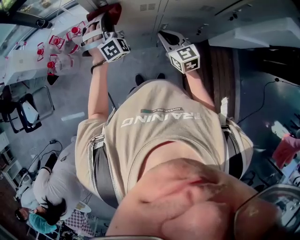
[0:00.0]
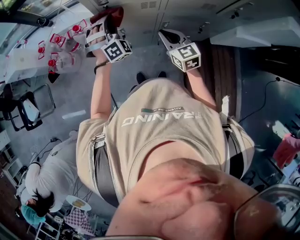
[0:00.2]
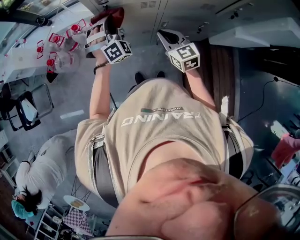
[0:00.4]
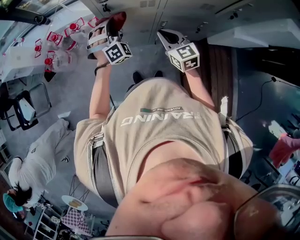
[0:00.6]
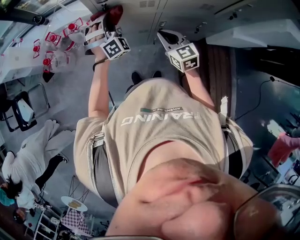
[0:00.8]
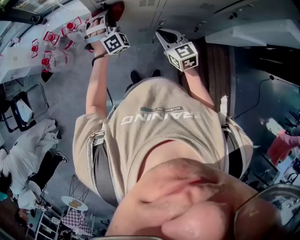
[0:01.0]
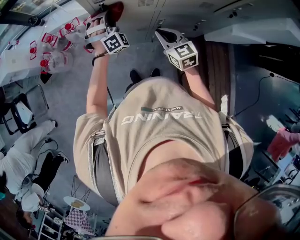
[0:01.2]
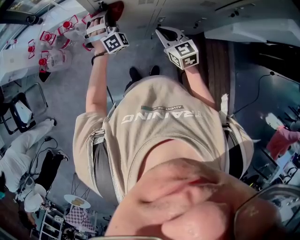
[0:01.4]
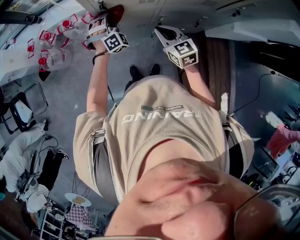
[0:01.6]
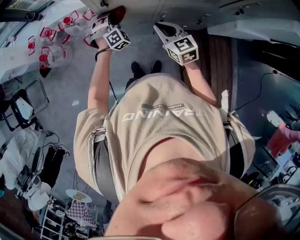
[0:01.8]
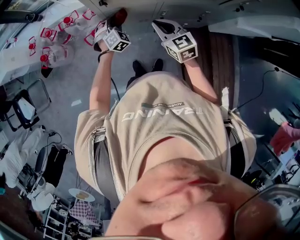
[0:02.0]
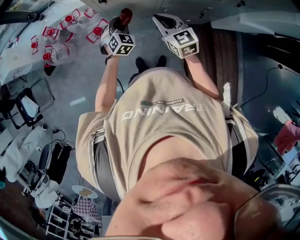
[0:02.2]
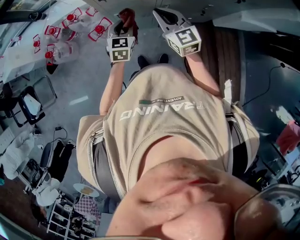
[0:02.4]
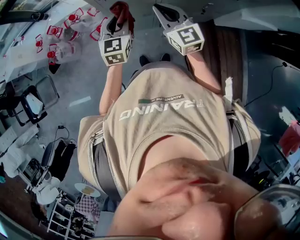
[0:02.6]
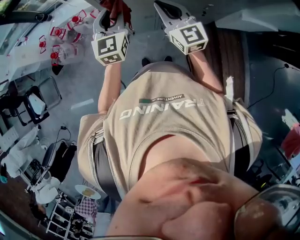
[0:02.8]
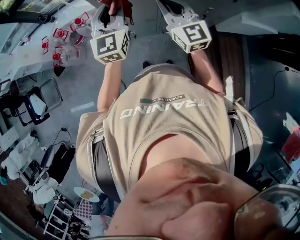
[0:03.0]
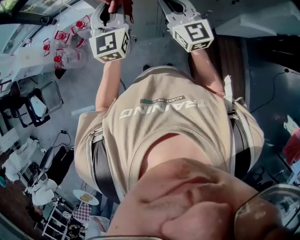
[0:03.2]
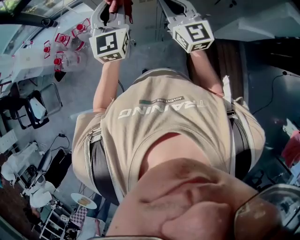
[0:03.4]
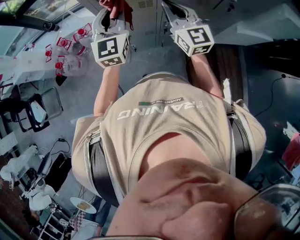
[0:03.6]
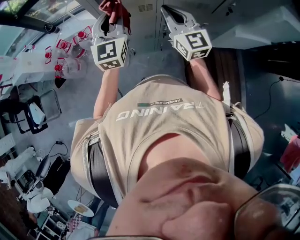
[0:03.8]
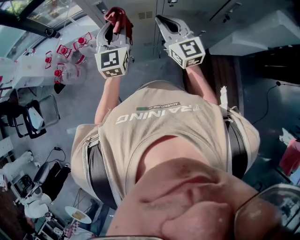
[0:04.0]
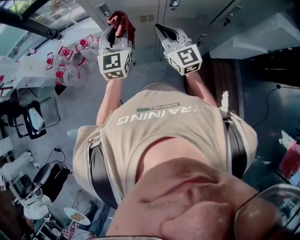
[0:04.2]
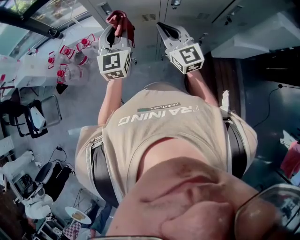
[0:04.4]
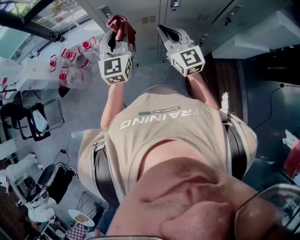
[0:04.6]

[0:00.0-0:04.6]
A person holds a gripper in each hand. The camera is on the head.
0:00.0 to 0:01.6: The left gripper moves downward, approximately 15 cm.
0:01.6 to 0:03.0: The right gripper goes about 15 cm upward, and turns by some 30 degrees, while the left gripper travels upward and backward by about 25 cm, and twists some 60 degrees counterclockwise, seen from behind.
0:03.0 to 0:04.6: The grippers move only a little.

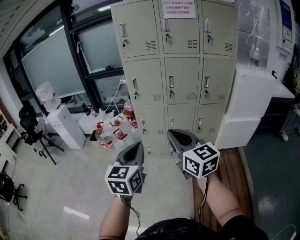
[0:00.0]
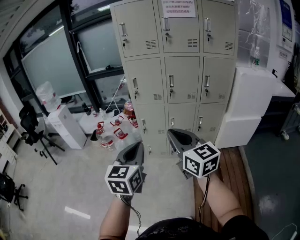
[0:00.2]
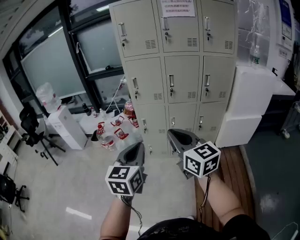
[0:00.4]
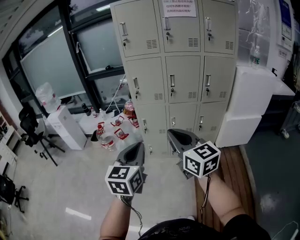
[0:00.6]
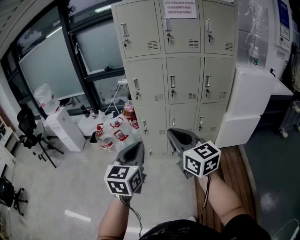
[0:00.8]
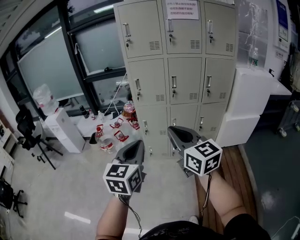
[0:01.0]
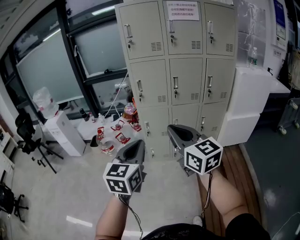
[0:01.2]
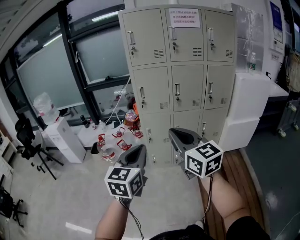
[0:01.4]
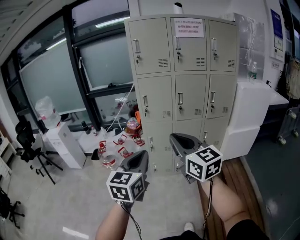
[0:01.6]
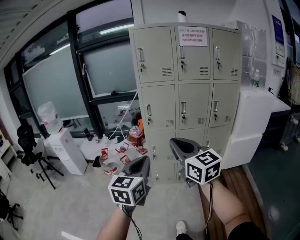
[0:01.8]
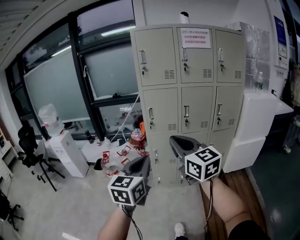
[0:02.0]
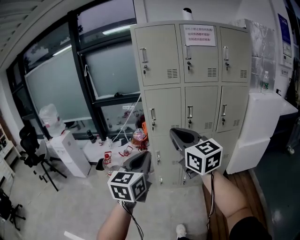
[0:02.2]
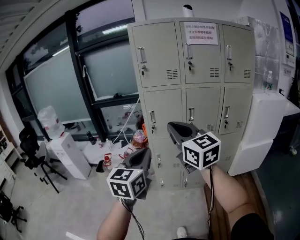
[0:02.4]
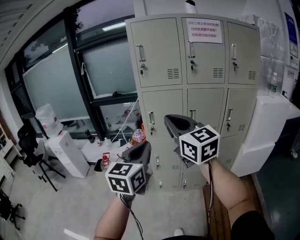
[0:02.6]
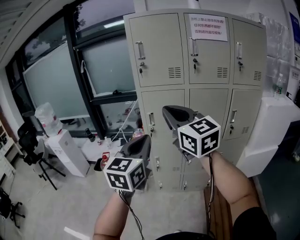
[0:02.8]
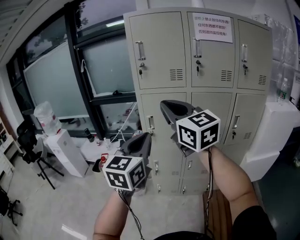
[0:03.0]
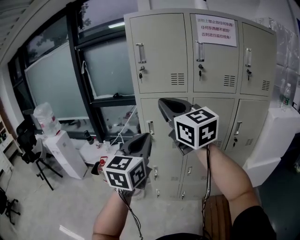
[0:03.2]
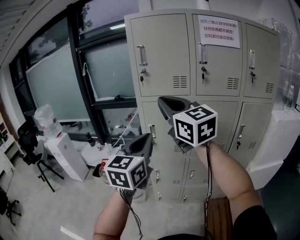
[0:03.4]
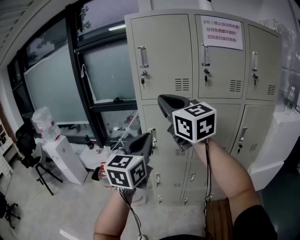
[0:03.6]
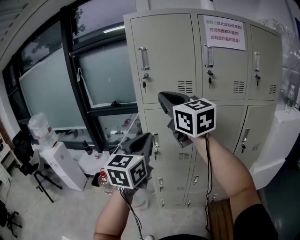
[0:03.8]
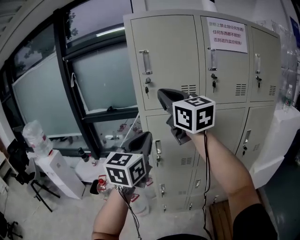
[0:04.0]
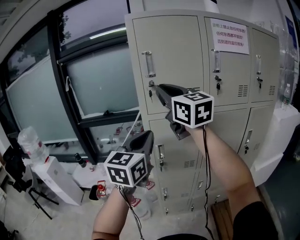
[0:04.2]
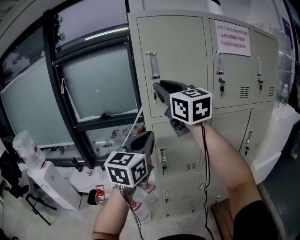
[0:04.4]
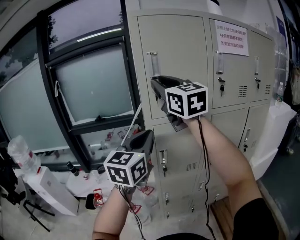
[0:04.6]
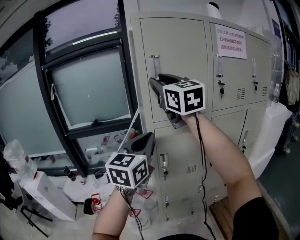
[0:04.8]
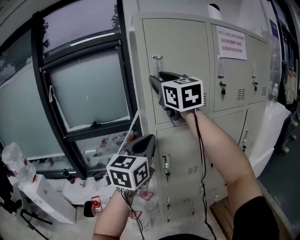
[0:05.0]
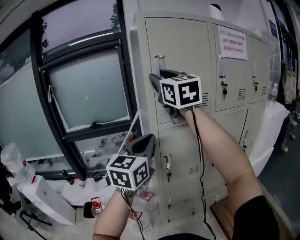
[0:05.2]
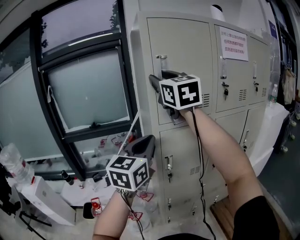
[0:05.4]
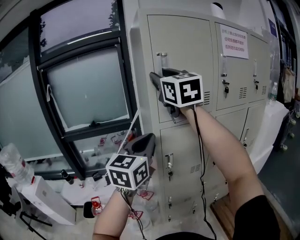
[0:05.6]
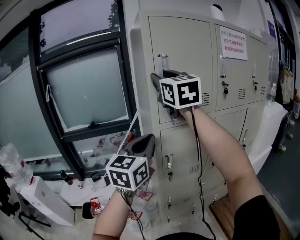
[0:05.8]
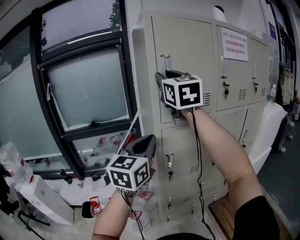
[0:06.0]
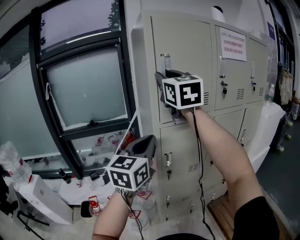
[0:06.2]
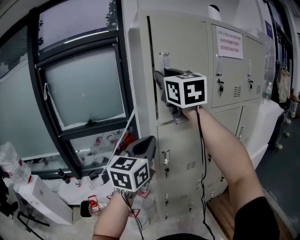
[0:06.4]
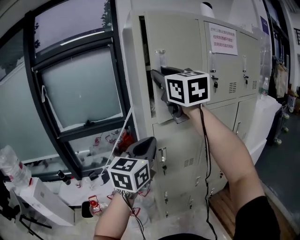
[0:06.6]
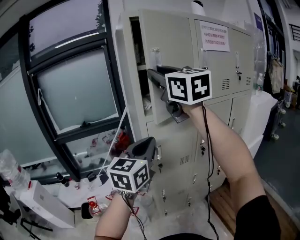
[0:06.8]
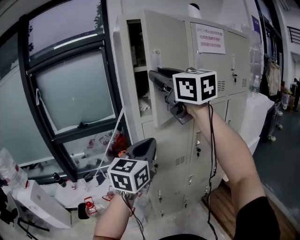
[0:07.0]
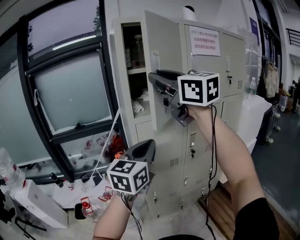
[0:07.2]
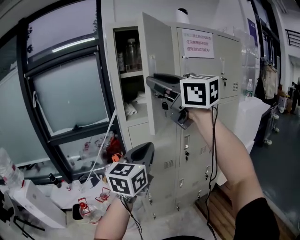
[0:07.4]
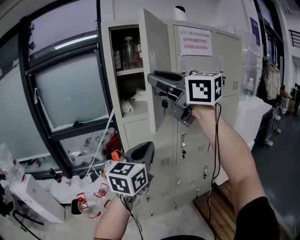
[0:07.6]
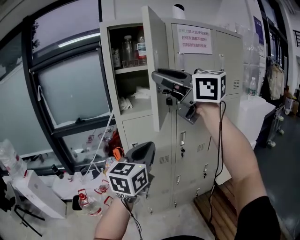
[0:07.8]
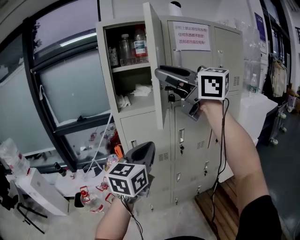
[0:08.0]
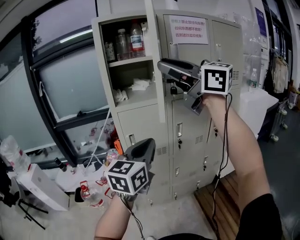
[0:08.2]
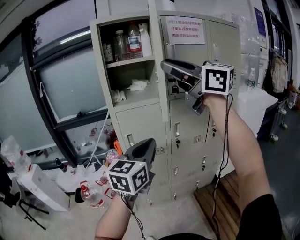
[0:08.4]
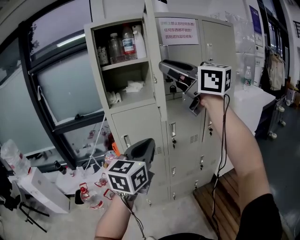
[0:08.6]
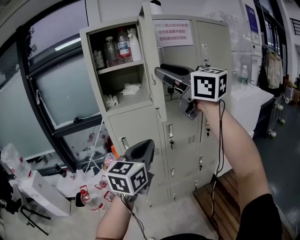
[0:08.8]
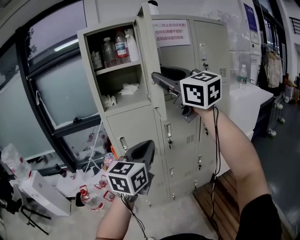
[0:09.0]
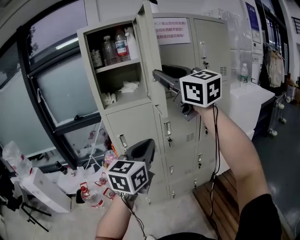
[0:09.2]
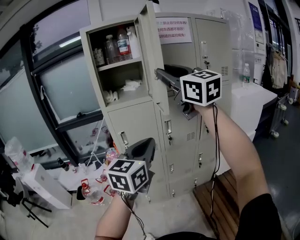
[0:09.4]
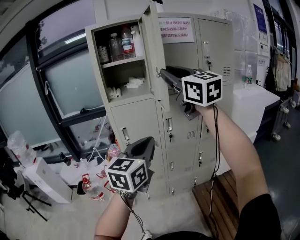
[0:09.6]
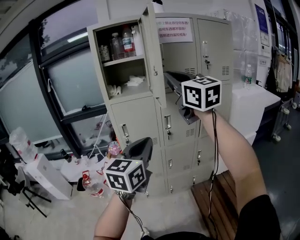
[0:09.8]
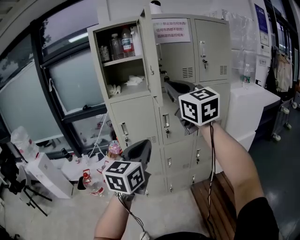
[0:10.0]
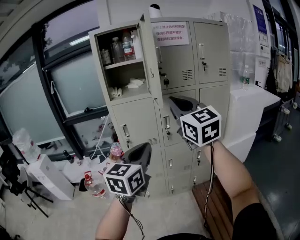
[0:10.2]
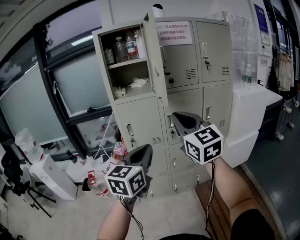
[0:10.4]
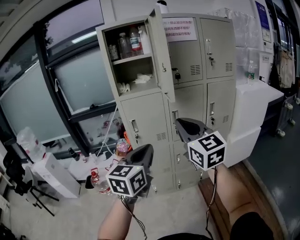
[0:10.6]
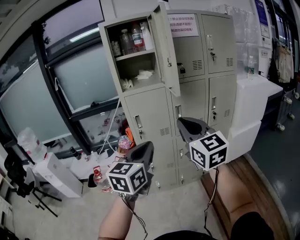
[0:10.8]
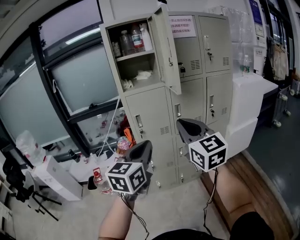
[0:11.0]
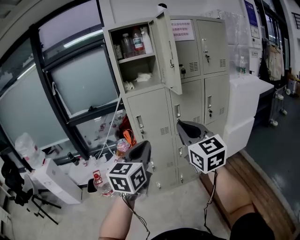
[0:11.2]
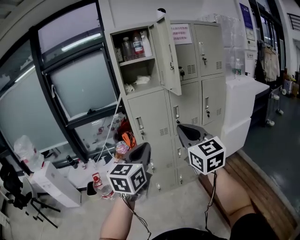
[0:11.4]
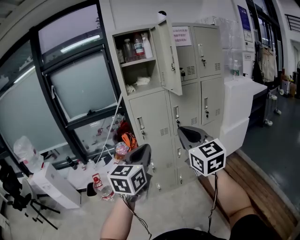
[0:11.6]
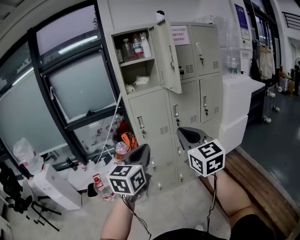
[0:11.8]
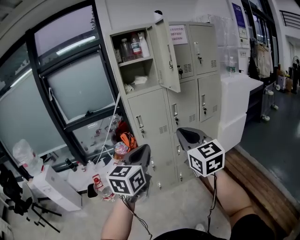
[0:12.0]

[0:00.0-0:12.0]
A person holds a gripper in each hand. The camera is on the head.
0:00.0 to 0:01.6: The two grippers go about 10 cm to the left.
0:01.6 to 0:03.0: The left gripper moves forward, some 30 cm, while the right gripper goes approximately 35 cm forward and upward.
0:03.0 to 0:04.4: The left gripper goes approximately 25 cm forward, while the right gripper moves forward and upward, about 30 cm.
0:04.4 to 0:06.0: The right gripper goes roughly 5 cm forward, and turns by about 20 degrees. Meanwhile the left gripper travels to the left by roughly 5 cm.
0:06.0 to 0:07.6: The left gripper is displaced to the right and backward by roughly 15 cm. Meanwhile the right gripper goes about 20 cm backward and to the right, and swivels roughly 30 degrees.
0:07.6 to 0:09.0: The grippers both shift to the right and backward by about 15 cm.
0:09.0 to 0:10.4: The right gripper goes roughly 20 cm downward and backward, and closes its fingers; the left gripper travels backward by about 10 cm.
0:10.4 to 0:12.0: The left gripper heads to the left and backward, covering about 20 cm; the right gripper is displaced backward and to the left by approximately 20 cm.

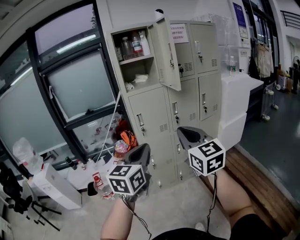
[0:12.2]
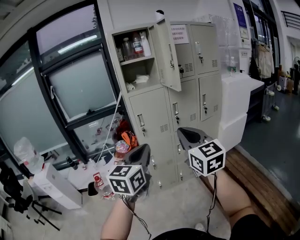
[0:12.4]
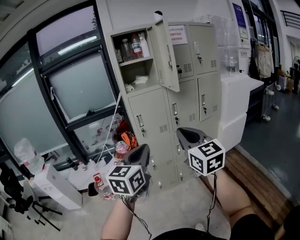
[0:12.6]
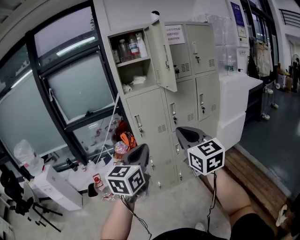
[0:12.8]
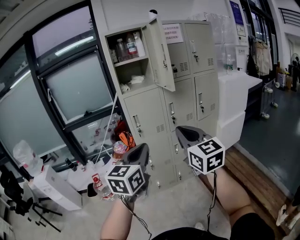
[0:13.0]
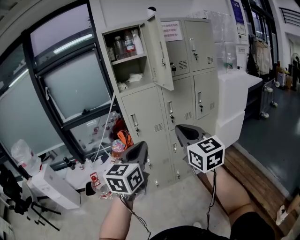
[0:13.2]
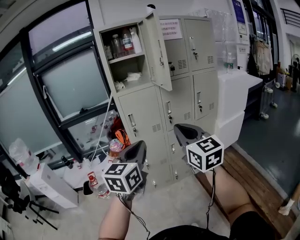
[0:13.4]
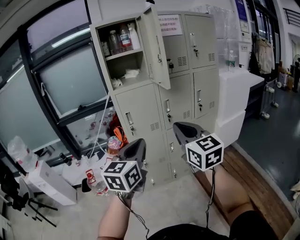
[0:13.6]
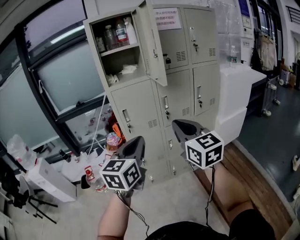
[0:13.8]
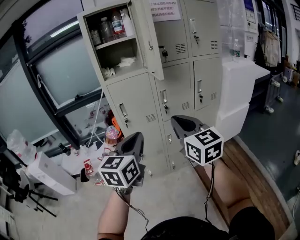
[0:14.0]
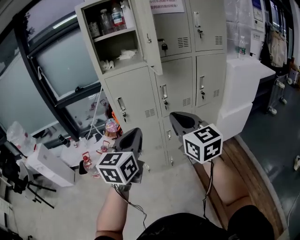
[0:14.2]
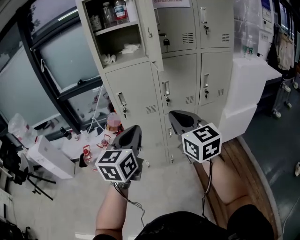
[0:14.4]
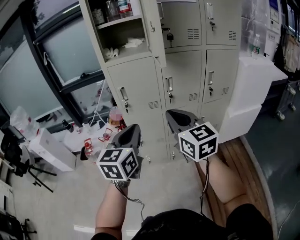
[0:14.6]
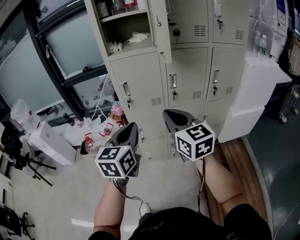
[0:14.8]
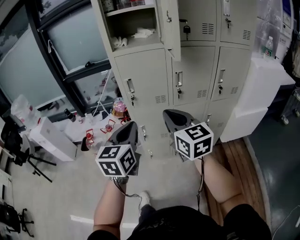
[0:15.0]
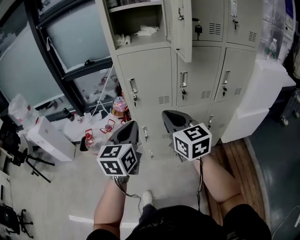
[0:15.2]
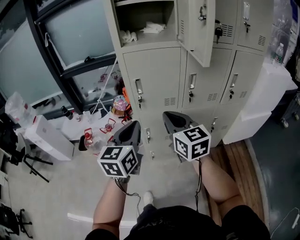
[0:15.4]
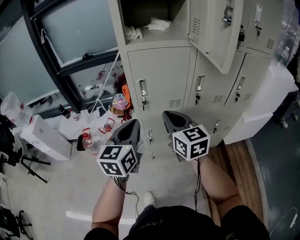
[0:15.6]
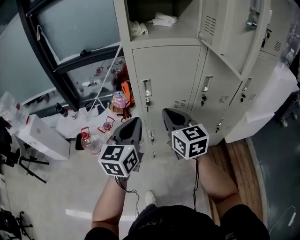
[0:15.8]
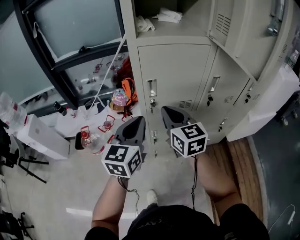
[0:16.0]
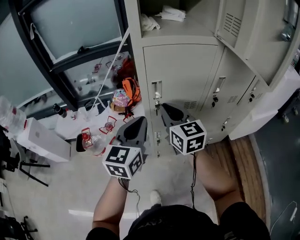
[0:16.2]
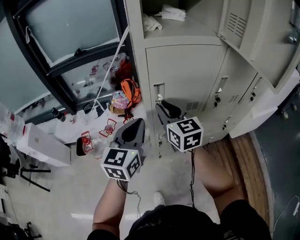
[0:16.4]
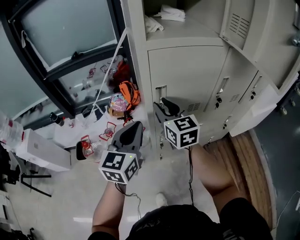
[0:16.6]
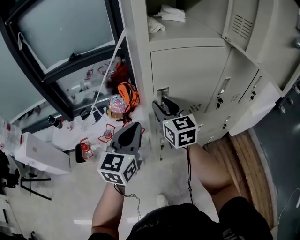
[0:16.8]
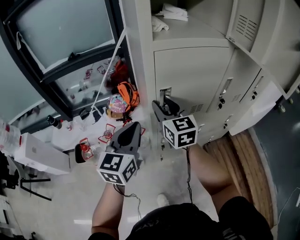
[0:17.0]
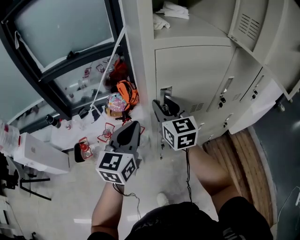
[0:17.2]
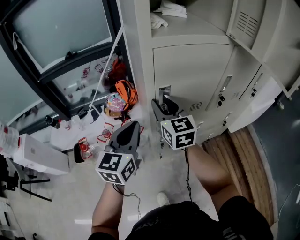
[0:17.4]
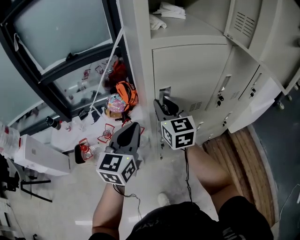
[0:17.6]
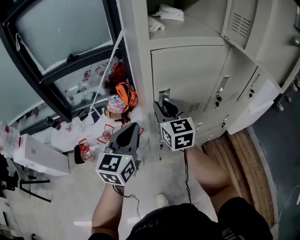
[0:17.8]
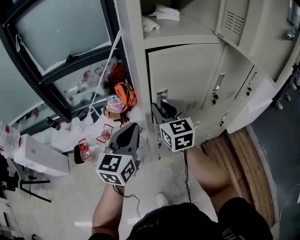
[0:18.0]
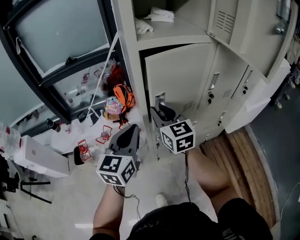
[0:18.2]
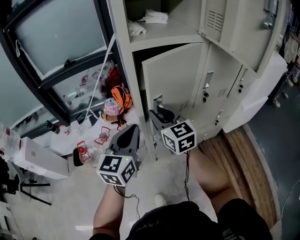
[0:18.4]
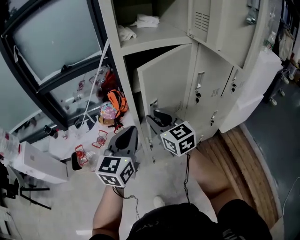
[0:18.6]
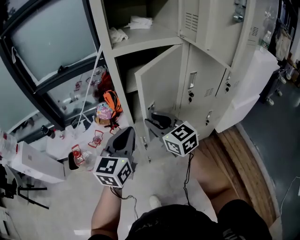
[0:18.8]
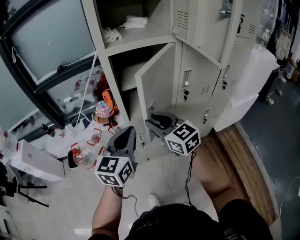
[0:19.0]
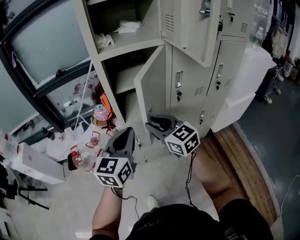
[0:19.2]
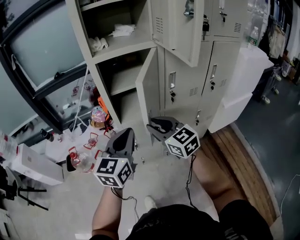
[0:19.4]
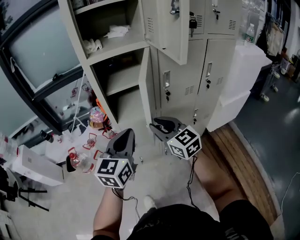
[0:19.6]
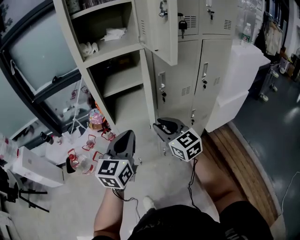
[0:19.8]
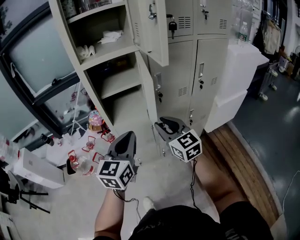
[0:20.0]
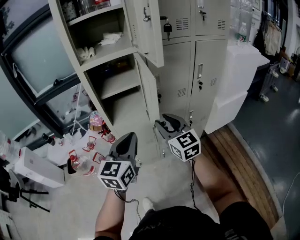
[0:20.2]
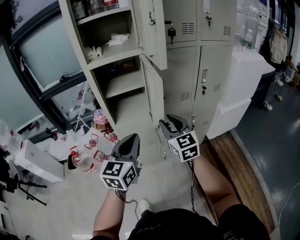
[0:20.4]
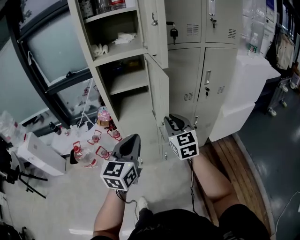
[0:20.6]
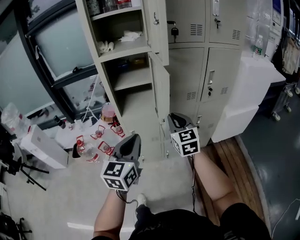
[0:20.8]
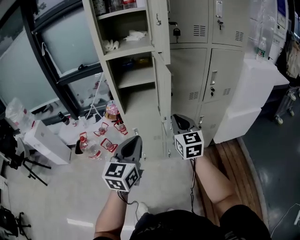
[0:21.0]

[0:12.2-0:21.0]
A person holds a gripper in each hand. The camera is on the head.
0:12.2 to 0:13.6: Both grippers travel together forward and to the right, roughly 10 cm.
0:13.6 to 0:15.2: The two grippers go roughly 20 cm forward and downward. The left gripper turns by approximately 20 degrees.
0:15.2 to 0:16.6: The grippers both shift forward and to the left by about 30 cm. The right gripper opens.
0:16.6 to 0:18.0: The grippers move only a little.
0:18.0 to 0:19.6: The left gripper travels to the right and backward by approximately 20 cm. Meanwhile the right gripper goes roughly 25 cm backward and to the right.
0:19.6 to 0:21.0: The left gripper is displaced backward and to the right by about 15 cm. The right gripper is displaced to the right by approximately 15 cm, and closes its fingers.
